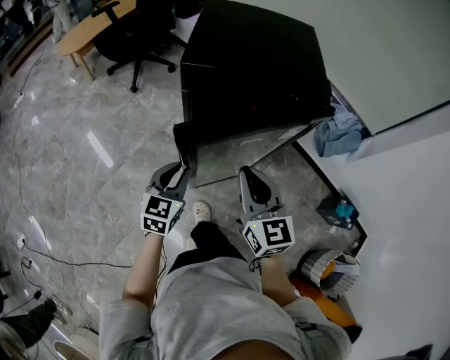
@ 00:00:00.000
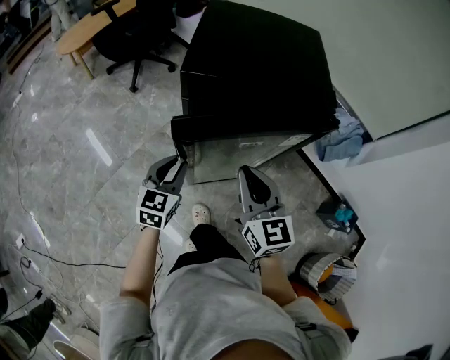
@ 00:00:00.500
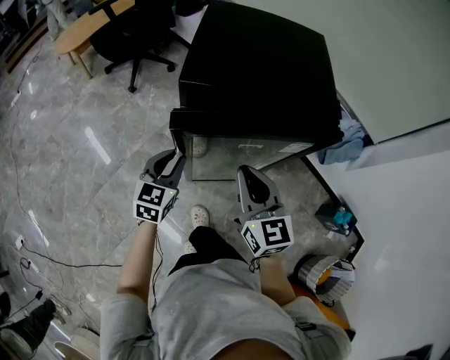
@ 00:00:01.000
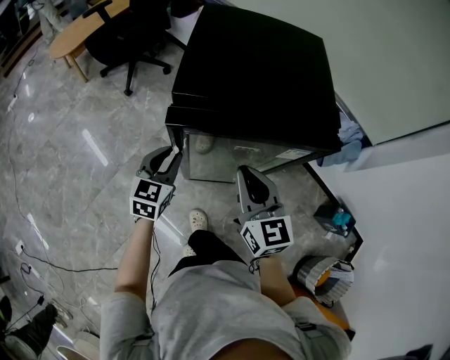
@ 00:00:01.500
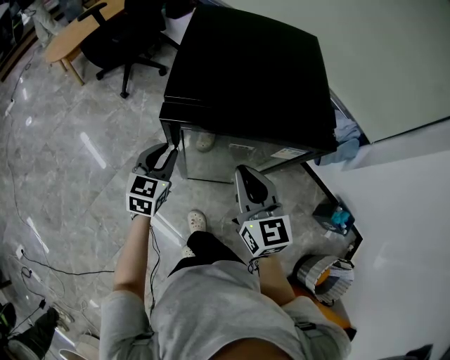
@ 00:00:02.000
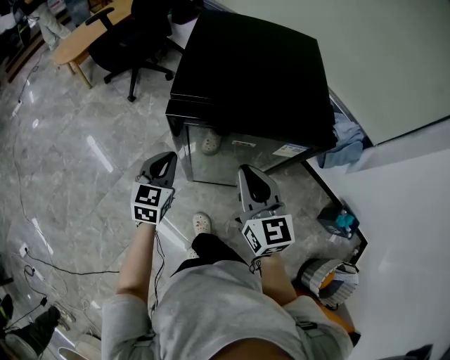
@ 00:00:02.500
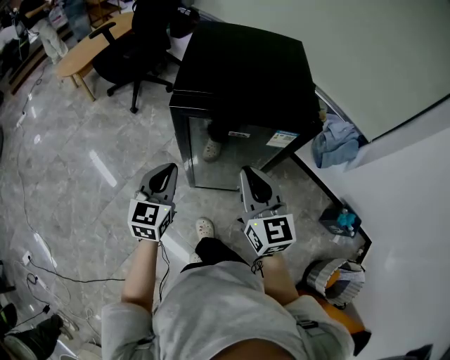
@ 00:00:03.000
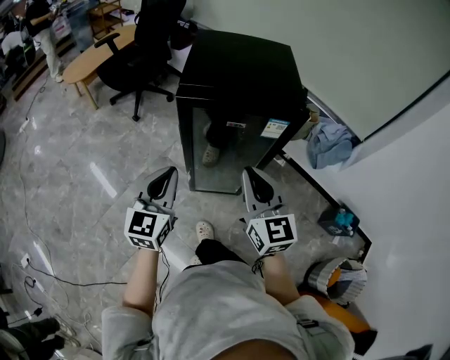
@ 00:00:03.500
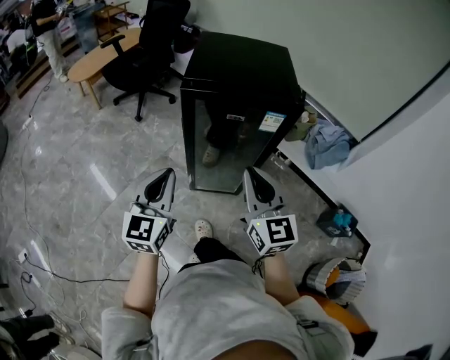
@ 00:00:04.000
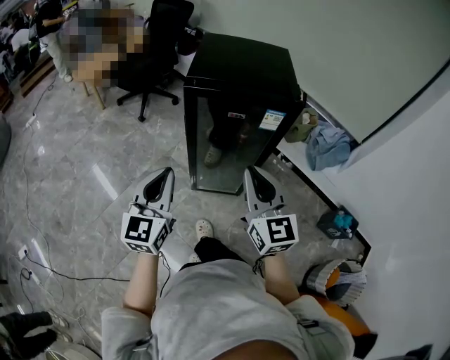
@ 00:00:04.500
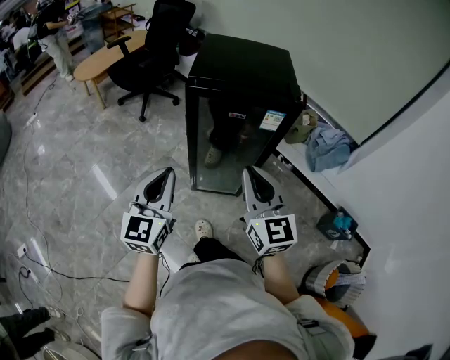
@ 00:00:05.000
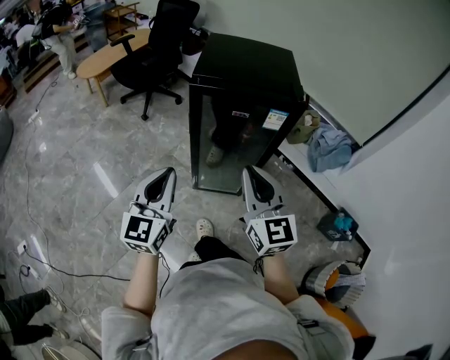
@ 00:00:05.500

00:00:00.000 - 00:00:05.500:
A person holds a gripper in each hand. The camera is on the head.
00:00:00.000 - 00:00:02.000: Both grippers move forward, about 15 cm.
00:00:02.000 - 00:00:03.500: The left gripper shifts roughly 25 cm backward and upward, while the right gripper goes some 15 cm backward and upward.
00:00:03.500 - 00:00:05.500: The two grippers go about 10 cm backward.

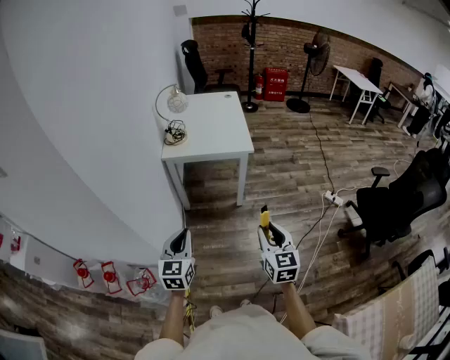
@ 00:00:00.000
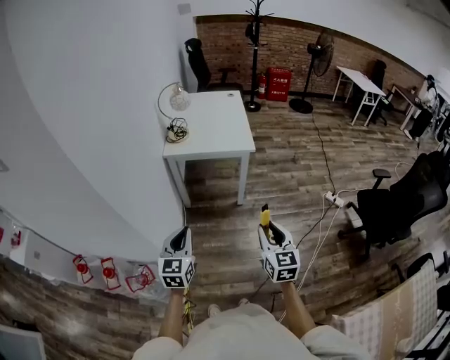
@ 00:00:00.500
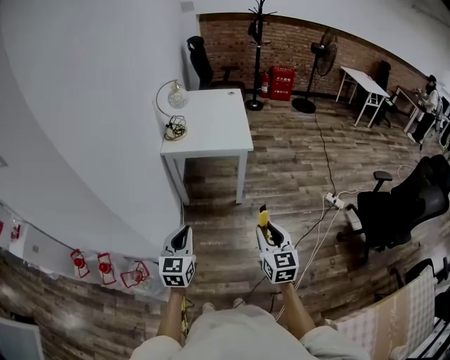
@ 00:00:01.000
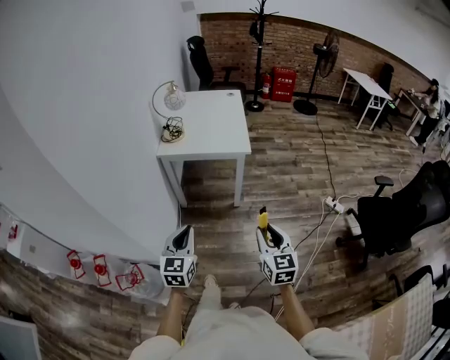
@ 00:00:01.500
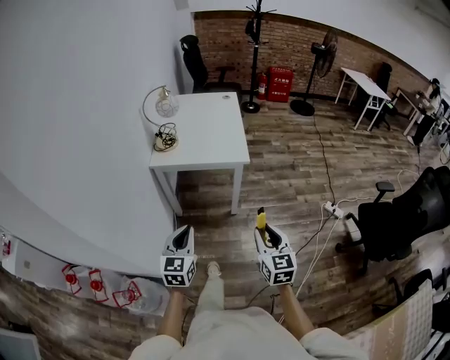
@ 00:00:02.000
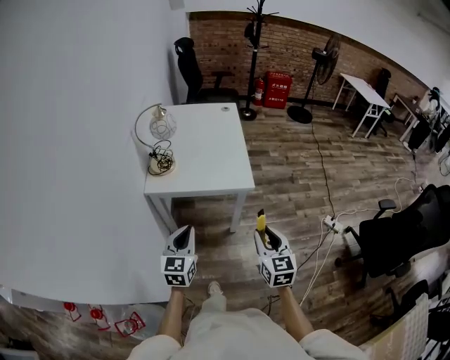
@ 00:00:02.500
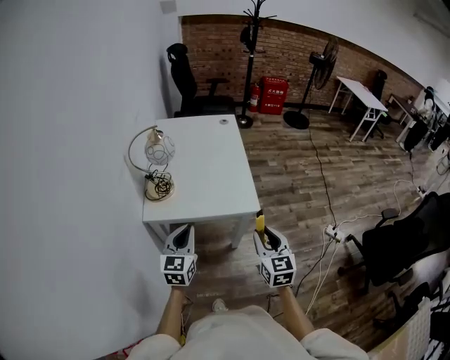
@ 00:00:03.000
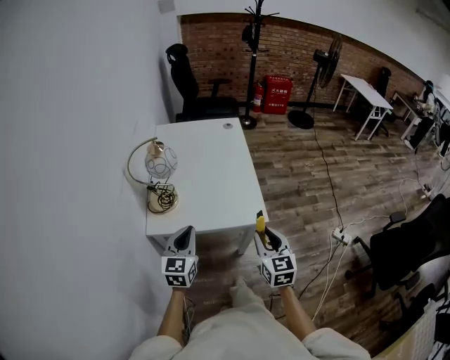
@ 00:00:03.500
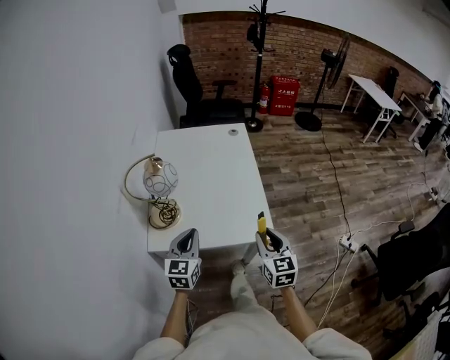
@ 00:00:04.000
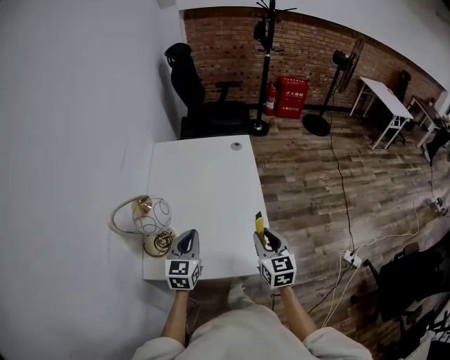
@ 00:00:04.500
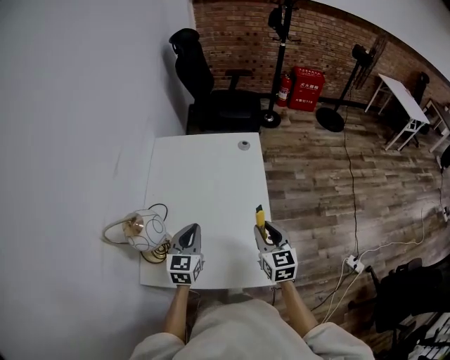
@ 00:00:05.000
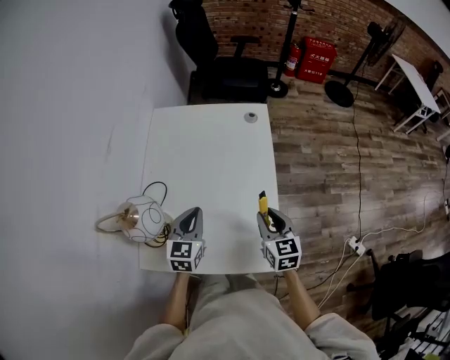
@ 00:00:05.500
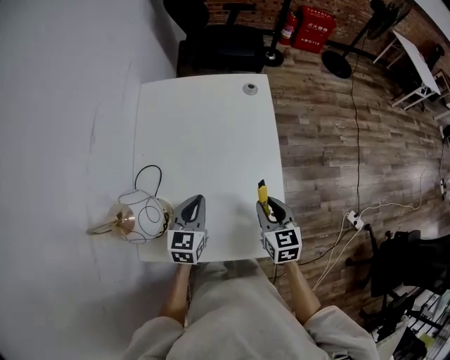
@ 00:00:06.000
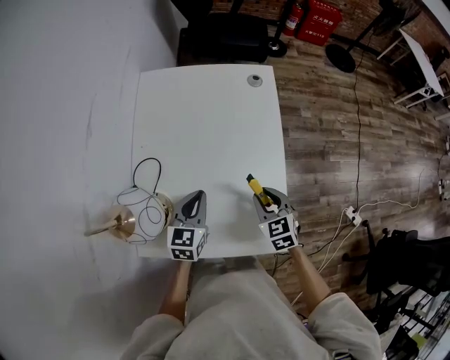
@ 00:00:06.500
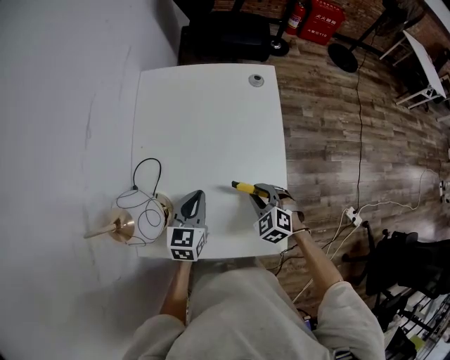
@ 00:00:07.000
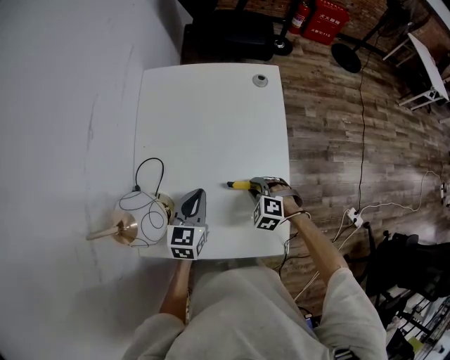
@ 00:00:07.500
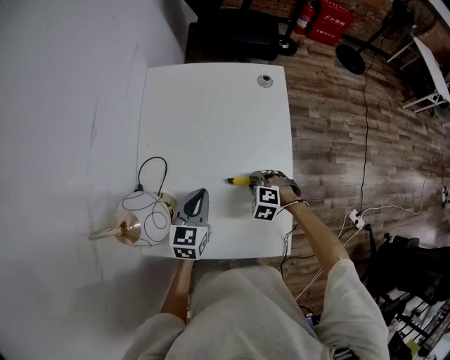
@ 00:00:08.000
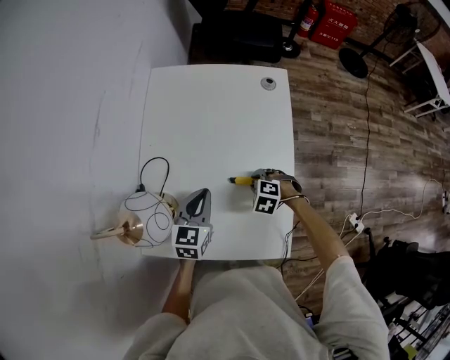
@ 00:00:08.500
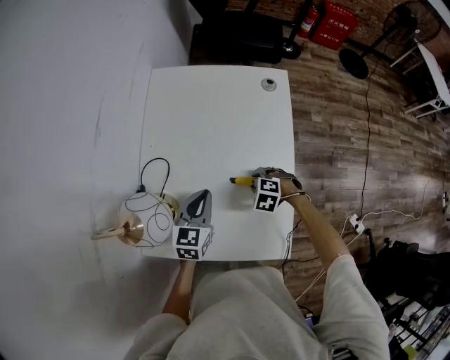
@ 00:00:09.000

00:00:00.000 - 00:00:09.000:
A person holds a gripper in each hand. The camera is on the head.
00:00:00.000 - 00:00:02.000: The left gripper shifts about 15 cm forward and to the right; the right gripper moves forward, some 15 cm.
00:00:02.000 - 00:00:04.500: The two grippers travel together, forward, roughly 70 cm.
00:00:04.500 - 00:00:07.000: The right gripper shifts roughly 25 cm downward and forward, and points its fingers some 30 degrees further downward; the left gripper moves forward and downward, approximately 20 cm.
00:00:07.000 - 00:00:09.000: The right gripper moves downward, some 10 cm, and turns by about 30 degrees.

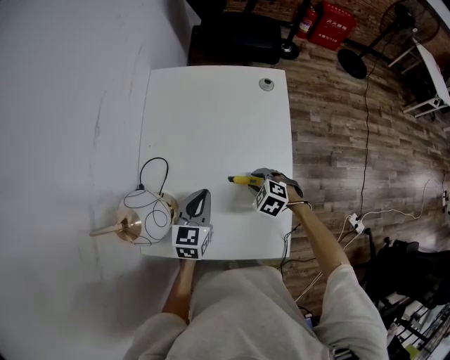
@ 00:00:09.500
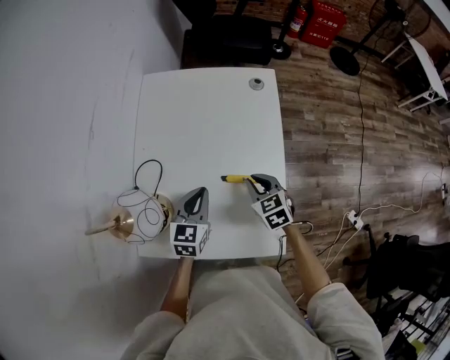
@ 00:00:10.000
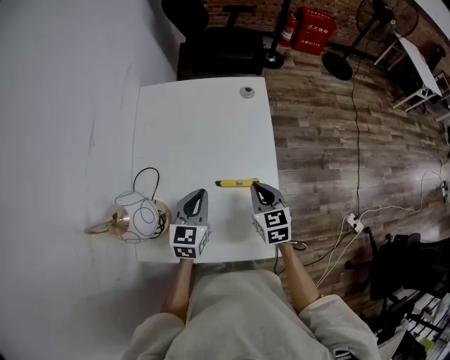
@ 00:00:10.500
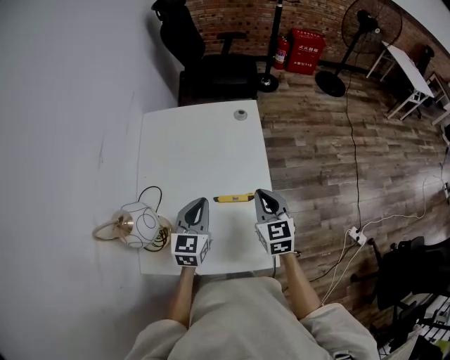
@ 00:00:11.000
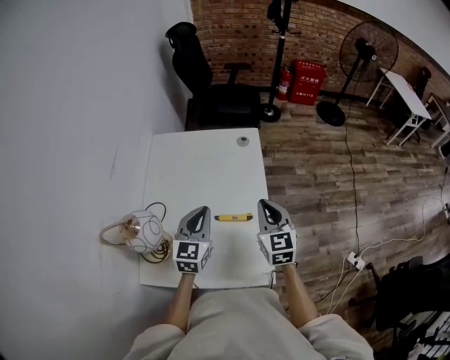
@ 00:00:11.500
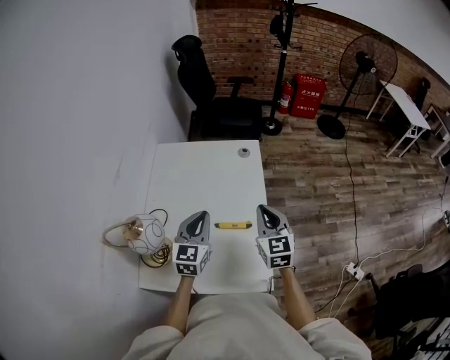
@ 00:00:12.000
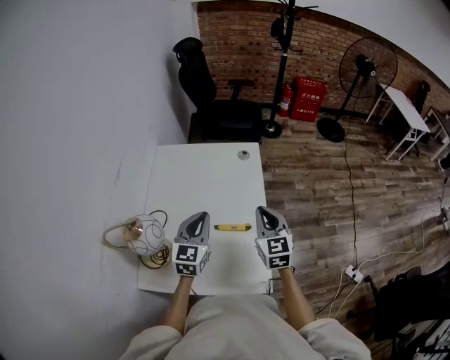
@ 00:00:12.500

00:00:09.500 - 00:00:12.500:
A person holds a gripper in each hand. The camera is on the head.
00:00:09.500 - 00:00:11.000: The left gripper travels upward and to the right by approximately 10 cm; the right gripper goes some 20 cm upward and to the right, angles its fingers upward, by about 40 degrees, and closes.
00:00:11.000 - 00:00:12.500: The two grippers go approximately 5 cm upward.

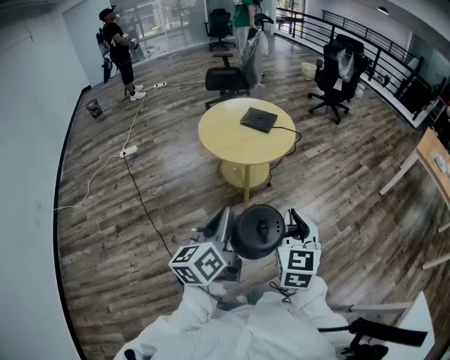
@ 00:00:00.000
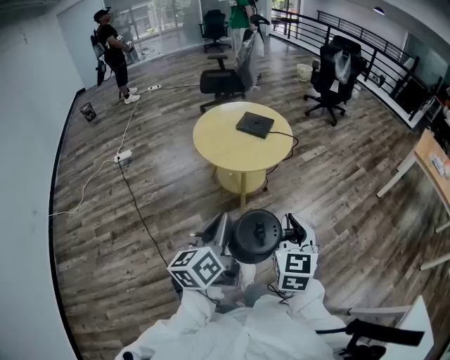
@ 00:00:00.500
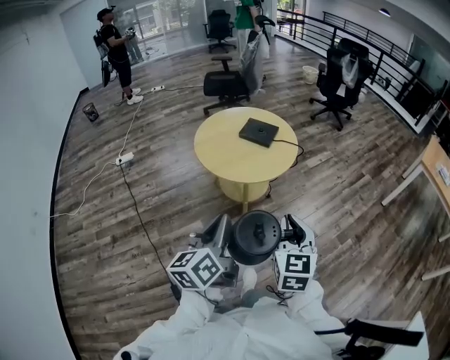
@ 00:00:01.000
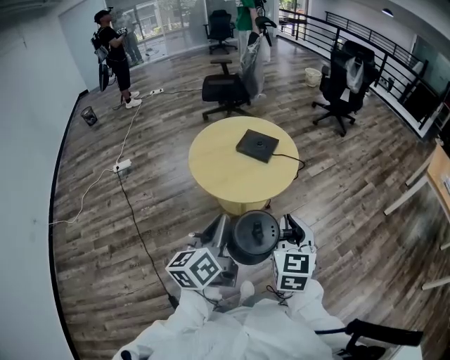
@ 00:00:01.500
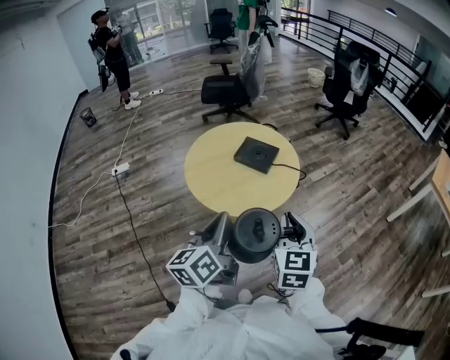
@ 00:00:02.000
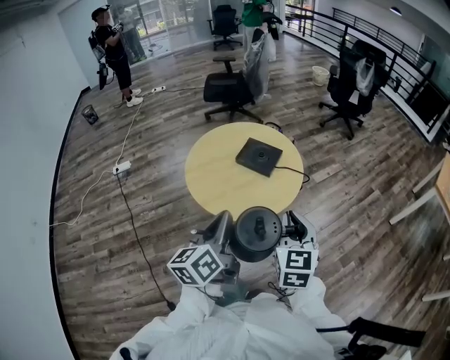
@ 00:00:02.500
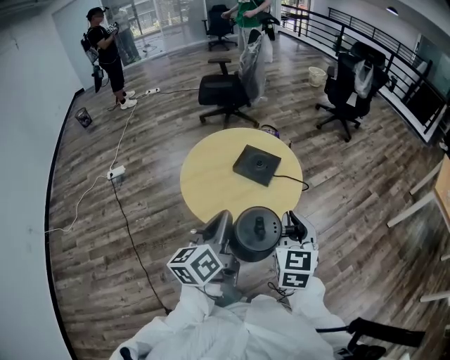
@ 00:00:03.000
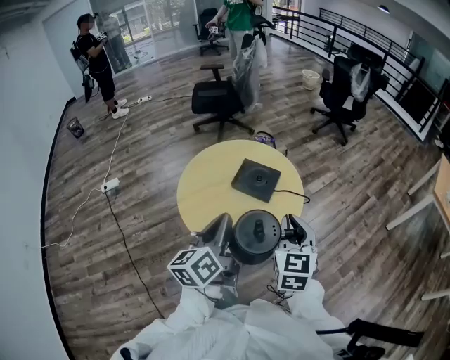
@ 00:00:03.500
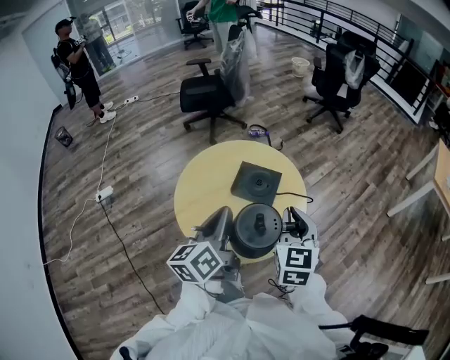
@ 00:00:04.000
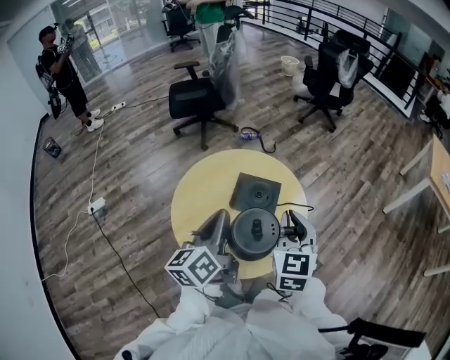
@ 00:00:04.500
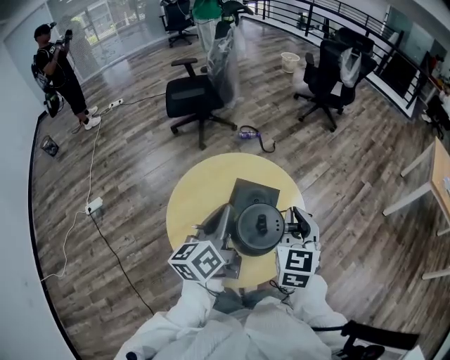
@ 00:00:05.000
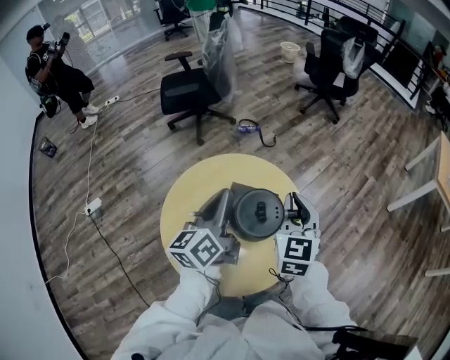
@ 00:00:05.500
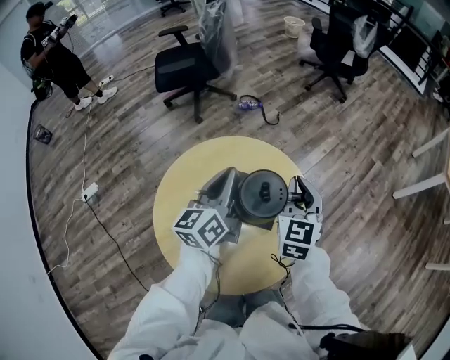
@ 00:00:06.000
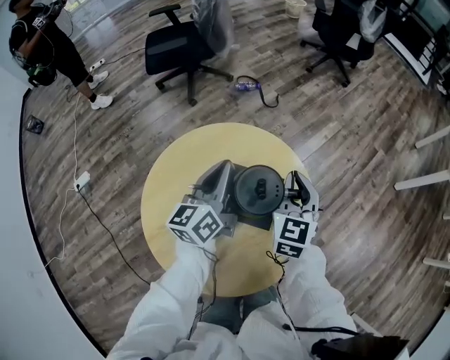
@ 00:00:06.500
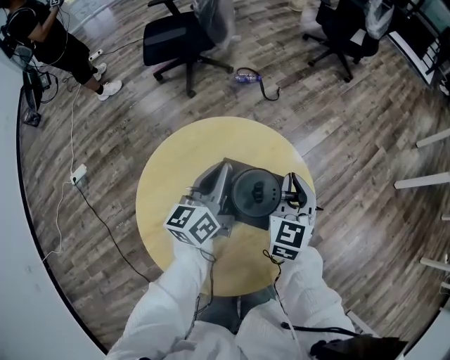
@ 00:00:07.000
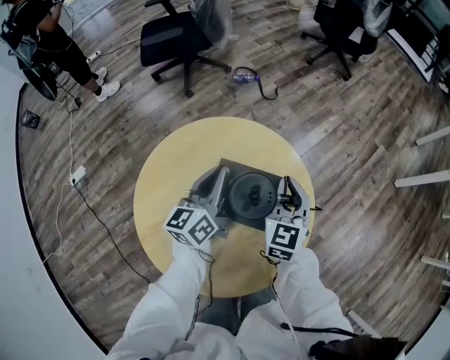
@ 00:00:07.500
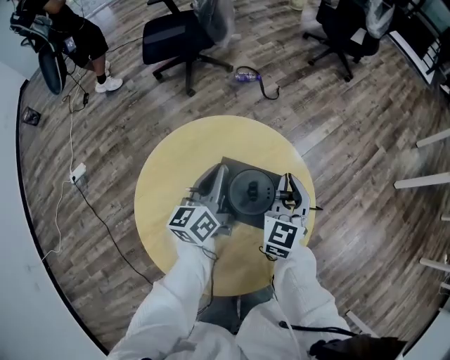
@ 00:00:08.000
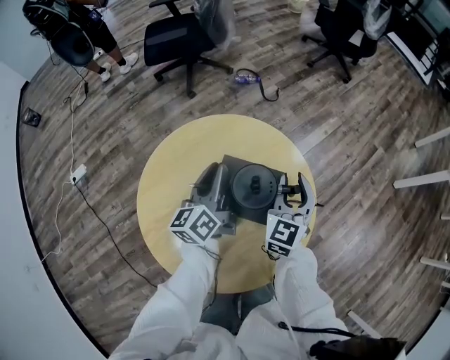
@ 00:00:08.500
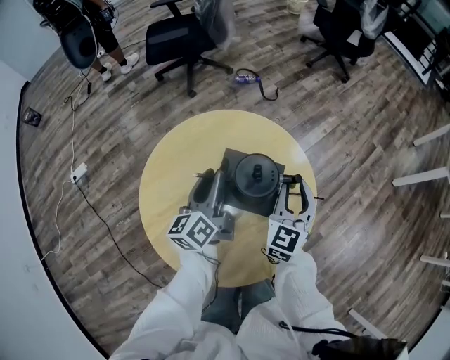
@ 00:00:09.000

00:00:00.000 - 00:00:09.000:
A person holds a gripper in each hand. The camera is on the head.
00:00:00.000 - 00:00:02.000: The two grippers go about 30 cm forward.
00:00:02.000 - 00:00:04.500: Both grippers move forward, about 30 cm.
00:00:04.500 - 00:00:07.000: The two grippers go about 30 cm forward and downward.
00:00:07.000 - 00:00:09.000: The grippers both shift backward by roughly 5 cm. The right gripper opens. Meanwhile the left gripper opens its fingers.
